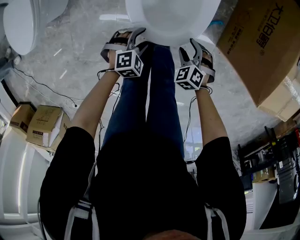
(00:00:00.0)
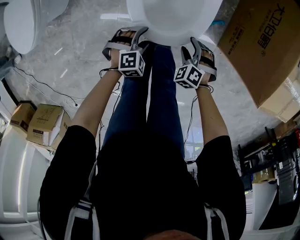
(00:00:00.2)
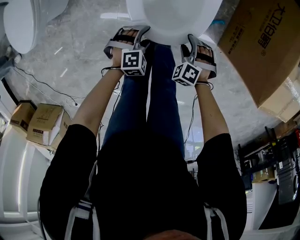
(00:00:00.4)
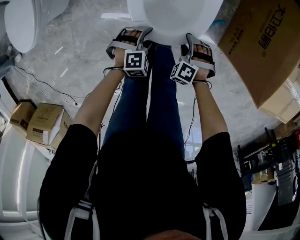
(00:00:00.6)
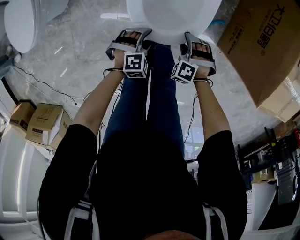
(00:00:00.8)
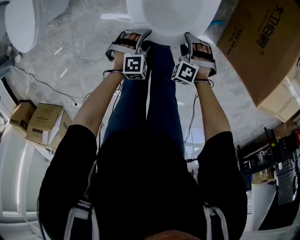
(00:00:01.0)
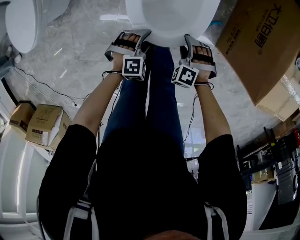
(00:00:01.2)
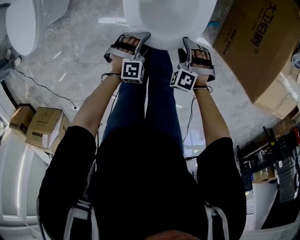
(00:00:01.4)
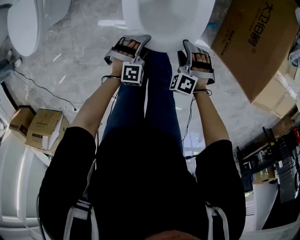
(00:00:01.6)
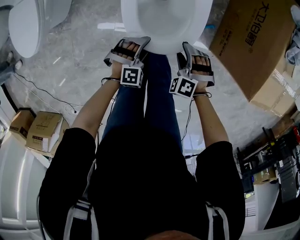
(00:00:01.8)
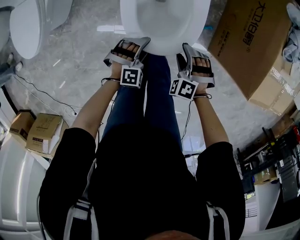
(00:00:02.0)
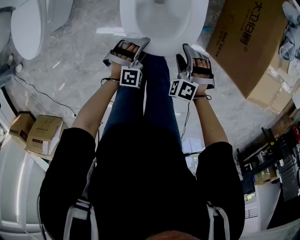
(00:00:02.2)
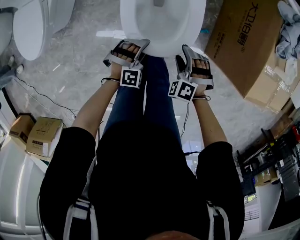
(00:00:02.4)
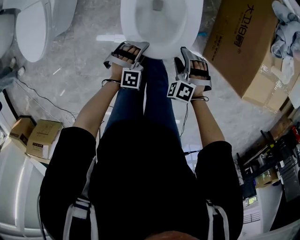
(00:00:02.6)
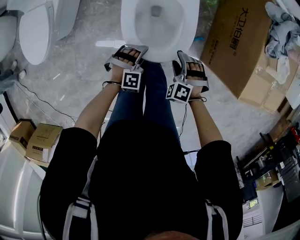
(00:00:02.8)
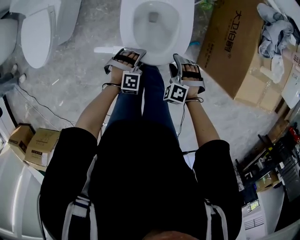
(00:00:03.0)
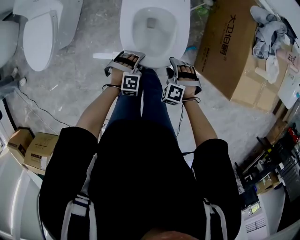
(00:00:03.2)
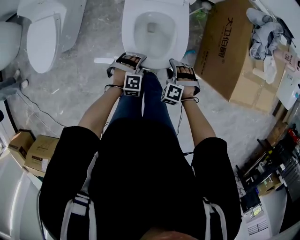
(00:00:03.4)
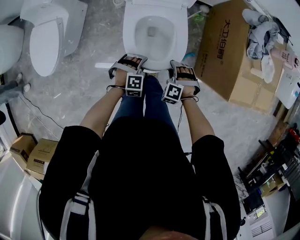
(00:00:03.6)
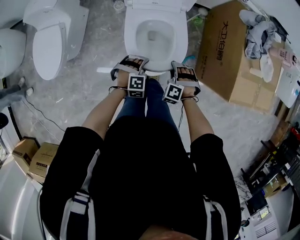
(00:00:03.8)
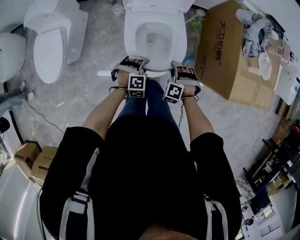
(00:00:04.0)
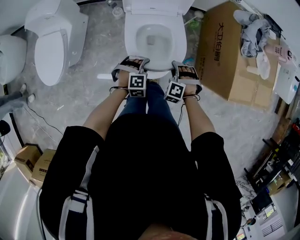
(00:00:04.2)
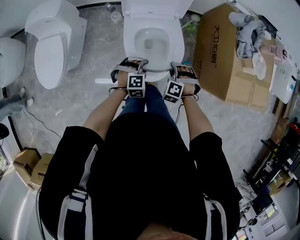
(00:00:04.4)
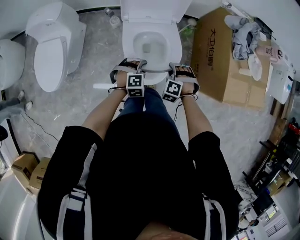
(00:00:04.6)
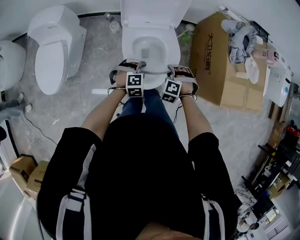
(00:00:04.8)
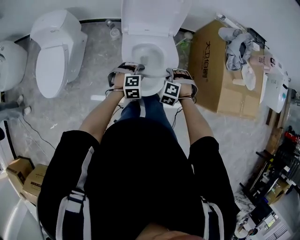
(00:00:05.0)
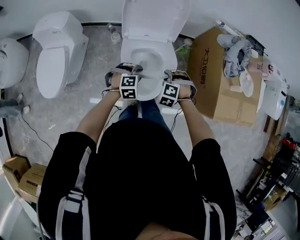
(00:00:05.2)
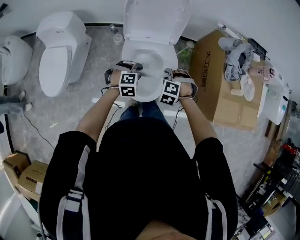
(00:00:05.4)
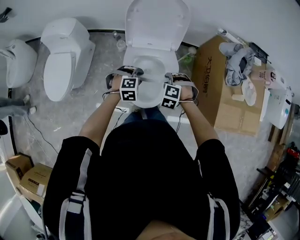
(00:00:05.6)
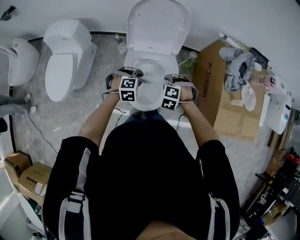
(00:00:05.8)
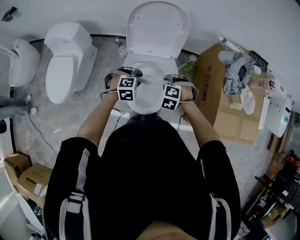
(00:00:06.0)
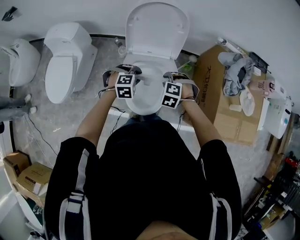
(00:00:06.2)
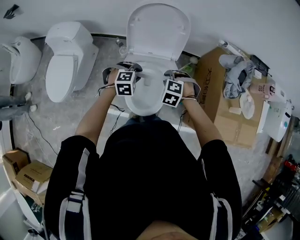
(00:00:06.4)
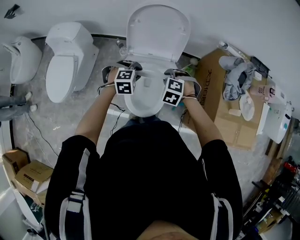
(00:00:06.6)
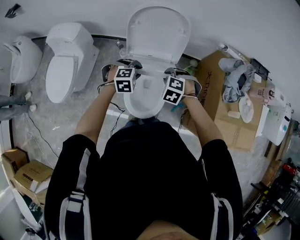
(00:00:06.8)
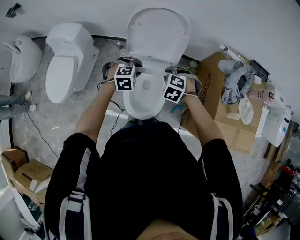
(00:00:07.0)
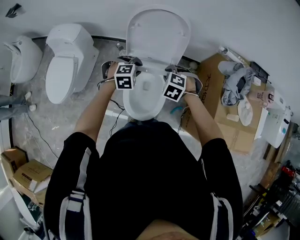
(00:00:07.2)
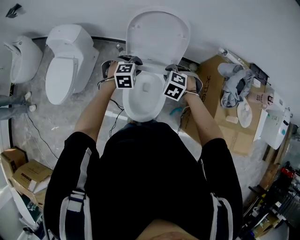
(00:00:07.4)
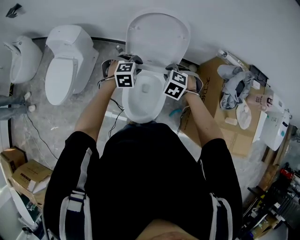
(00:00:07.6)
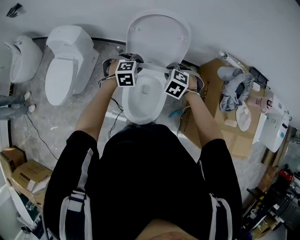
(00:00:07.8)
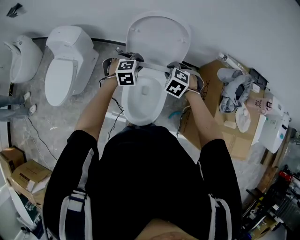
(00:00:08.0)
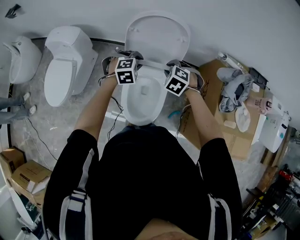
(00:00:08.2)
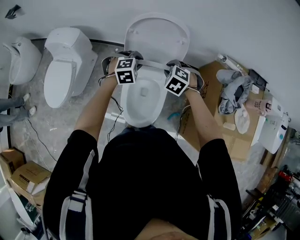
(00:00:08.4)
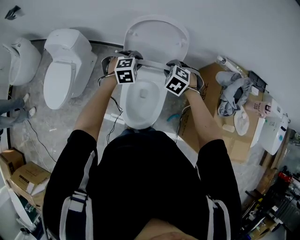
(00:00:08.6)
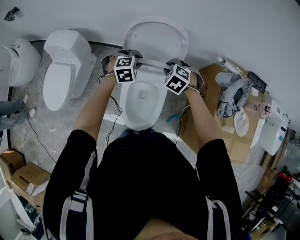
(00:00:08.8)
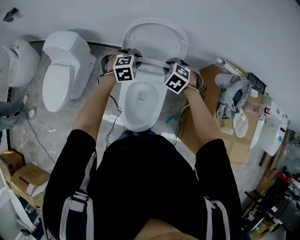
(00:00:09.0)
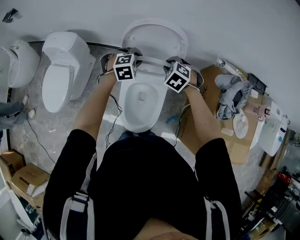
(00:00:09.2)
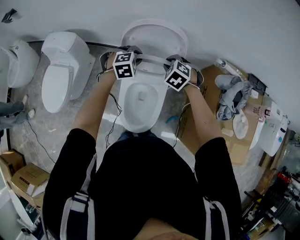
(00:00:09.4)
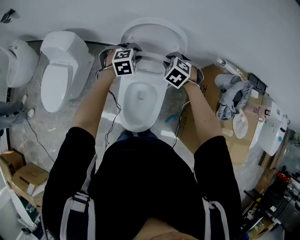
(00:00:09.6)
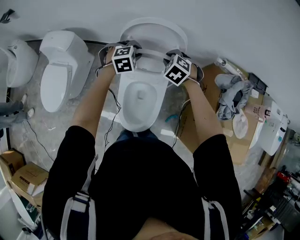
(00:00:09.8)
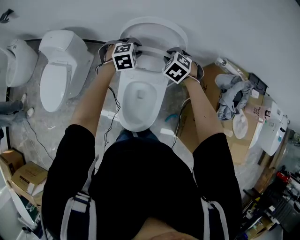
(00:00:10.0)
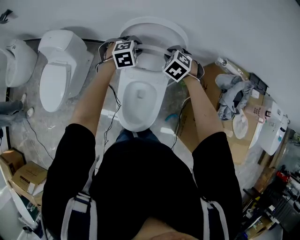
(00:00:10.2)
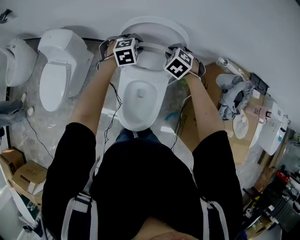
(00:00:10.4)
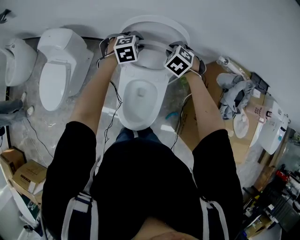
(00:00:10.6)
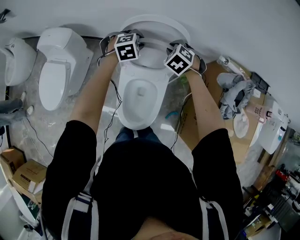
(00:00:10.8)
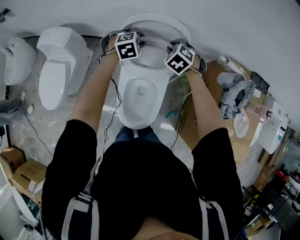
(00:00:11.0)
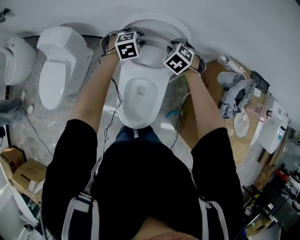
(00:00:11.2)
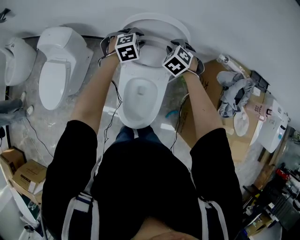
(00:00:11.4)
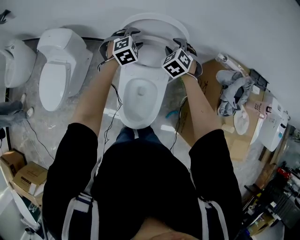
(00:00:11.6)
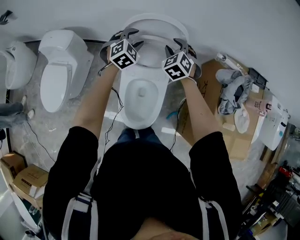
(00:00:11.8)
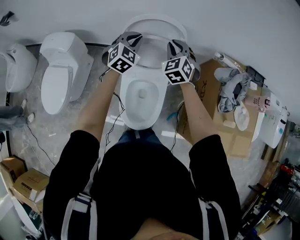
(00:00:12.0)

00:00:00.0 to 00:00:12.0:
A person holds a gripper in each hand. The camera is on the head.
00:00:00.0 to 00:00:01.6: The right gripper moves upward, about 5 cm, and swivels some 30 degrees.
00:00:01.6 to 00:00:03.0: The two grippers go approximately 10 cm upward.
00:00:03.0 to 00:00:04.4: The right gripper moves upward, roughly 5 cm, and closes. The left gripper shifts roughly 10 cm upward and forward.
00:00:04.4 to 00:00:06.0: The two grippers go some 15 cm upward and forward.
00:00:06.0 to 00:00:07.6: Both grippers travel together forward and upward, some 15 cm.
00:00:07.6 to 00:00:09.0: The two grippers go some 10 cm forward.
00:00:09.0 to 00:00:10.4: Both grippers travel together forward, roughly 10 cm.
00:00:10.4 to 00:00:12.0: The two grippers go about 10 cm upward. The right gripper angles its fingers upward, by approximately 30 degrees, and opens and closes again; the left gripper angles its fingers upward, by roughly 30 degrees, and opens and closes again.

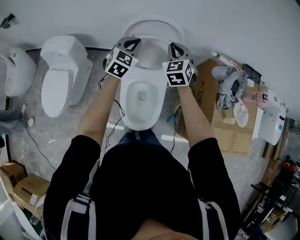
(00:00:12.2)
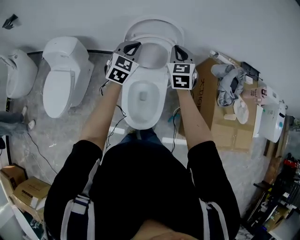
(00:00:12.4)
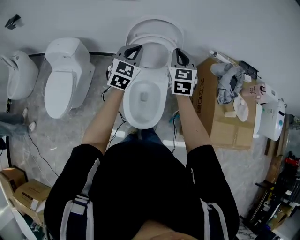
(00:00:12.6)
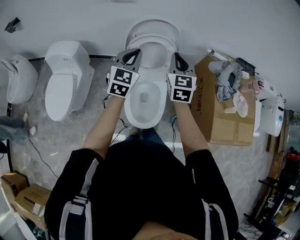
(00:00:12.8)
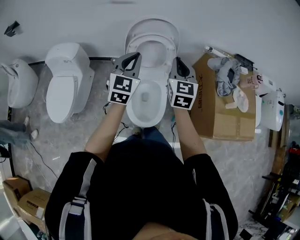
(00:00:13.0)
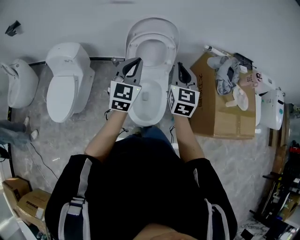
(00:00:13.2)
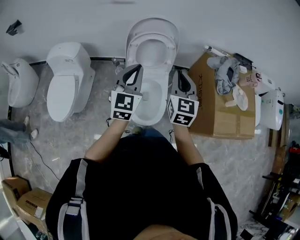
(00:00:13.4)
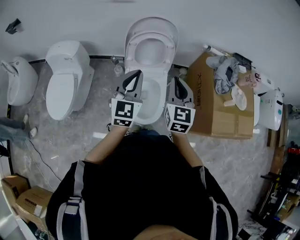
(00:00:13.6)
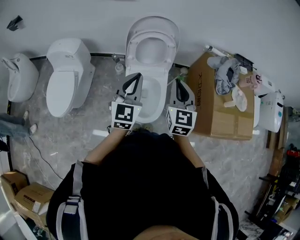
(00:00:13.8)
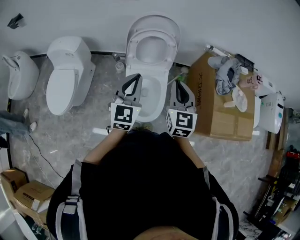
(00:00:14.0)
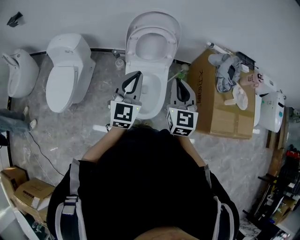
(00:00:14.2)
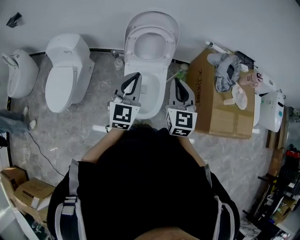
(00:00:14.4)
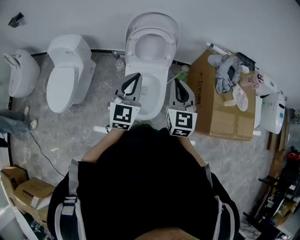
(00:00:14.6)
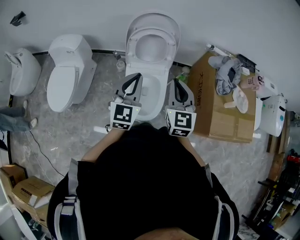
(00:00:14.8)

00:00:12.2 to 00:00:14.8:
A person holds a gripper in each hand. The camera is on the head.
00:00:12.2 to 00:00:13.4: Both grippers move backward, about 25 cm. The right gripper changes its angle by approximately 30 degrees, while the left gripper turns by about 20 degrees.
00:00:13.4 to 00:00:14.8: The left gripper shifts by approximately 5 cm.

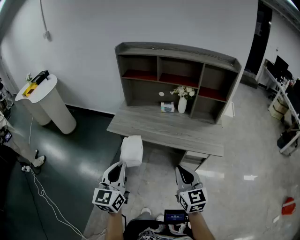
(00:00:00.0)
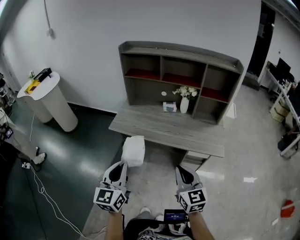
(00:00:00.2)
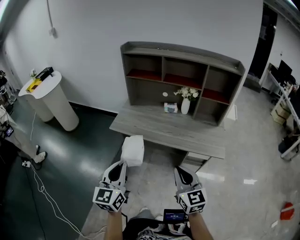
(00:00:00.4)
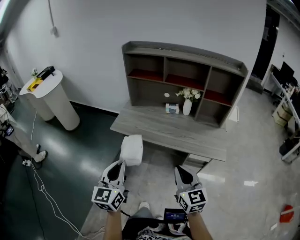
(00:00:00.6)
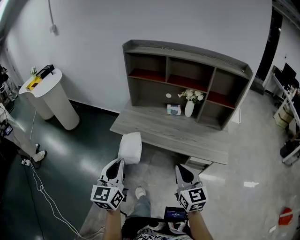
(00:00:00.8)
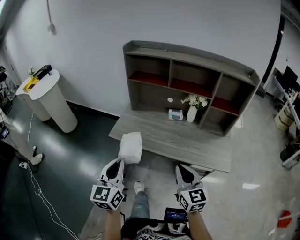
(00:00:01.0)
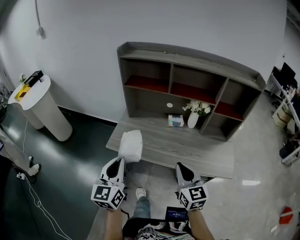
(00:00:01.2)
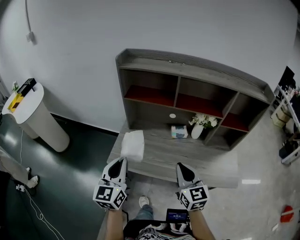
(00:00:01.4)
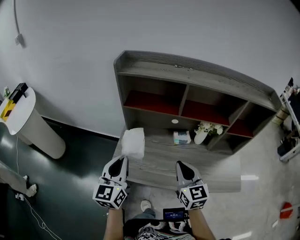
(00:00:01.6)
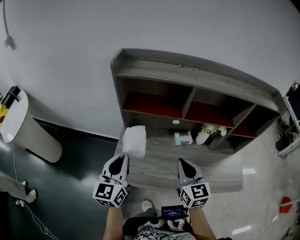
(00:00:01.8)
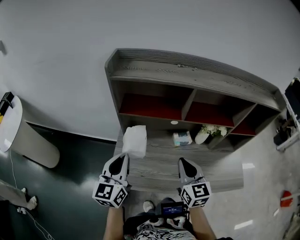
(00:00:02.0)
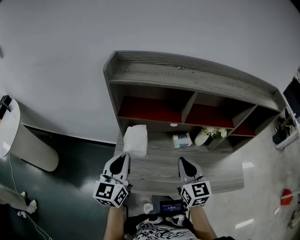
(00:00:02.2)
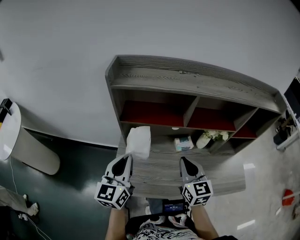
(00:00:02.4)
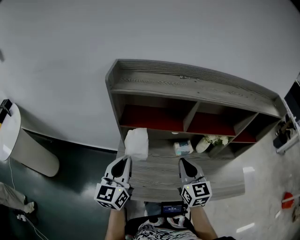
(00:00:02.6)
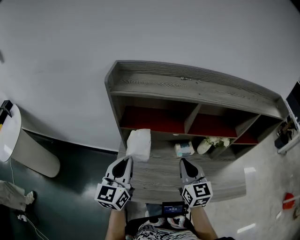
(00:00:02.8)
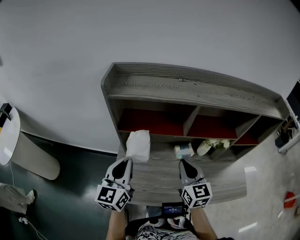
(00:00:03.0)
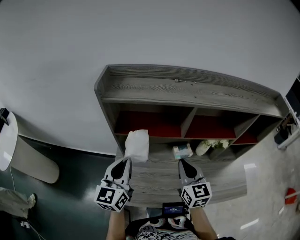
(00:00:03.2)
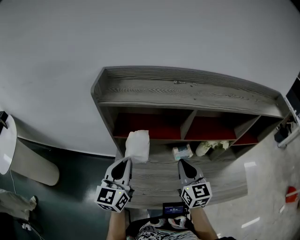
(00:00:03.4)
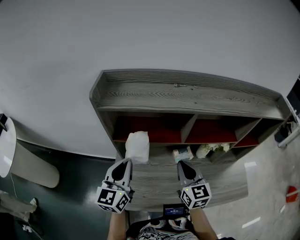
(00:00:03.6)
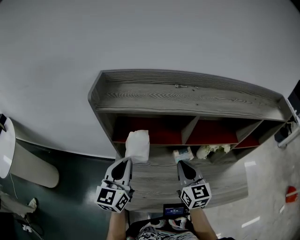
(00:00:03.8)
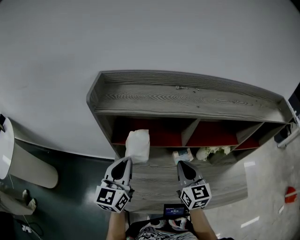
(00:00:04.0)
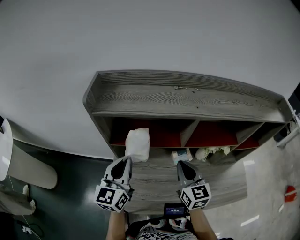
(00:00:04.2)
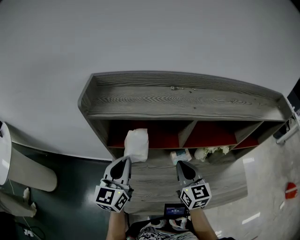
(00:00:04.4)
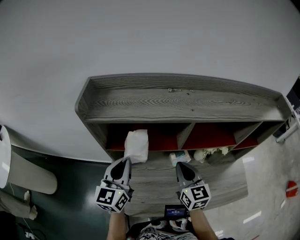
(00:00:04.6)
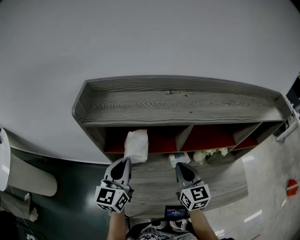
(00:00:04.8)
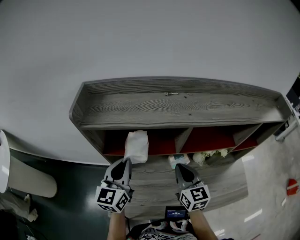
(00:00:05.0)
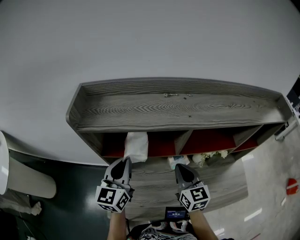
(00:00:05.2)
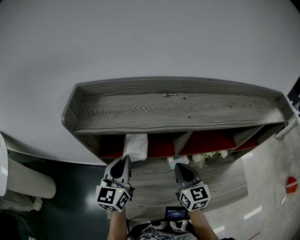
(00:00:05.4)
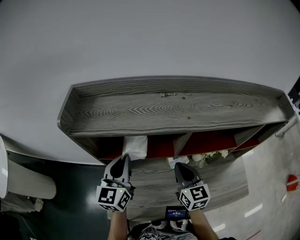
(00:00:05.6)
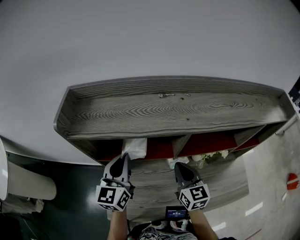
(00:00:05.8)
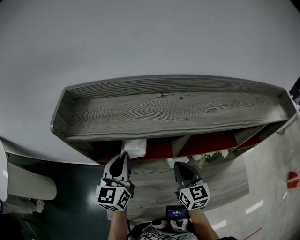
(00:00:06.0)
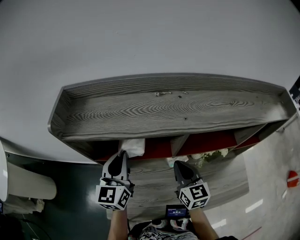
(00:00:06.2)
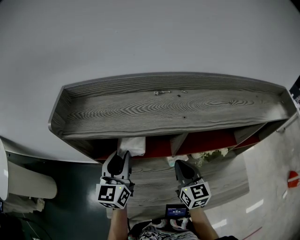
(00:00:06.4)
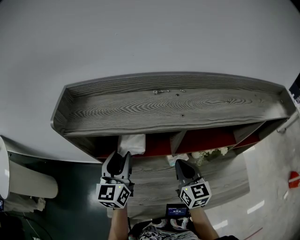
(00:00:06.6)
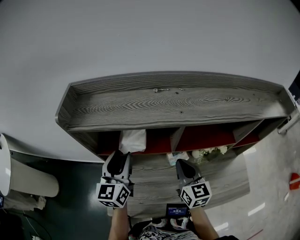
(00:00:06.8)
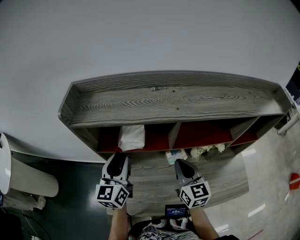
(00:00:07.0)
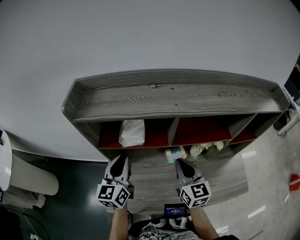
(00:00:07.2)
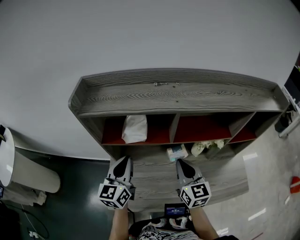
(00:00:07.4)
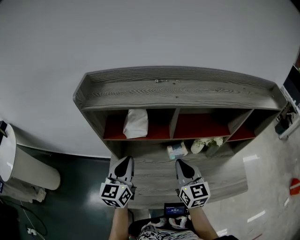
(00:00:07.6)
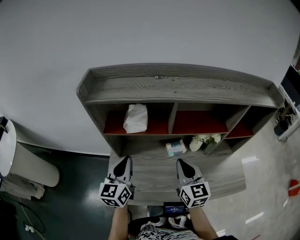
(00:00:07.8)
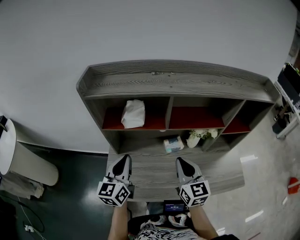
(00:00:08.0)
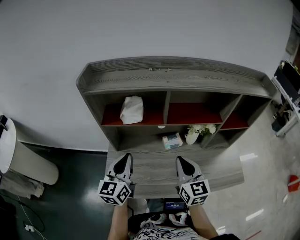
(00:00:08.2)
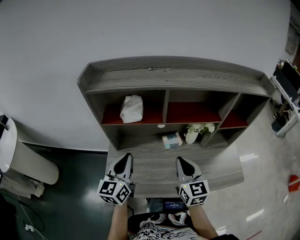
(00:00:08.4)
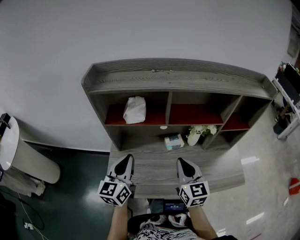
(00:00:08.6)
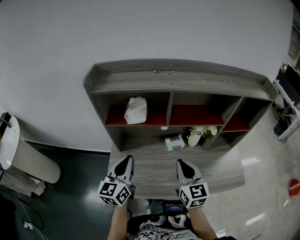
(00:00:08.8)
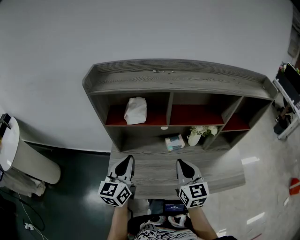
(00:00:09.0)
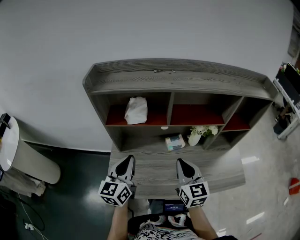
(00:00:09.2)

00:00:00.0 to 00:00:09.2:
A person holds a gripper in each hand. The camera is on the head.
00:00:00.0 to 00:00:01.6: The pair of grippers is taken forward, some 40 cm.
00:00:01.6 to 00:00:03.0: Both grippers travel together forward, about 15 cm.
00:00:03.0 to 00:00:04.6: The two grippers go approximately 10 cm forward.
00:00:04.6 to 00:00:06.2: The left gripper moves forward, roughly 5 cm. The right gripper changes place by approximately 5 cm.
00:00:06.2 to 00:00:07.6: Both grippers move backward, some 10 cm. The left gripper opens, then closes again.
00:00:07.6 to 00:00:09.2: Both grippers move backward, some 5 cm.
